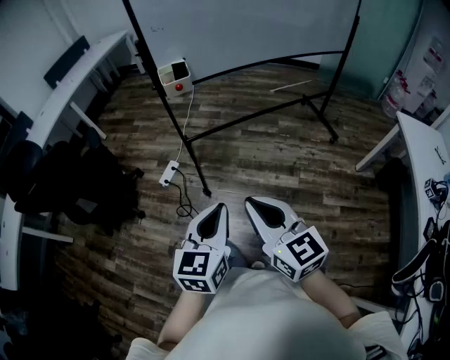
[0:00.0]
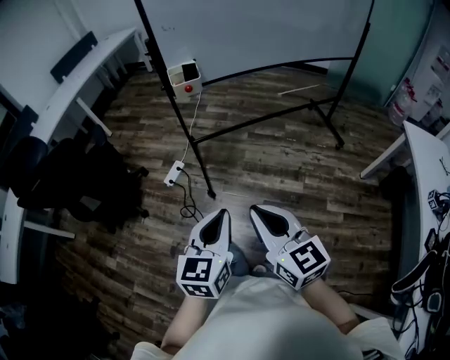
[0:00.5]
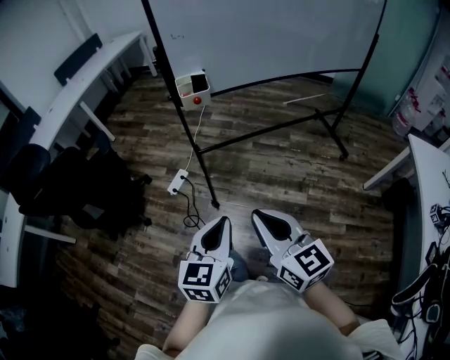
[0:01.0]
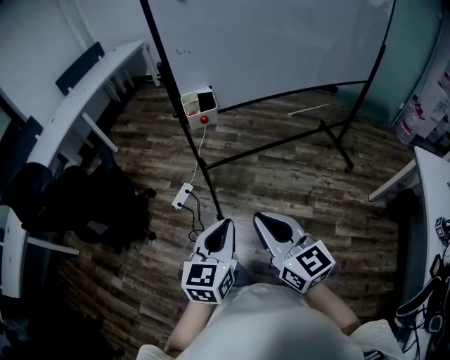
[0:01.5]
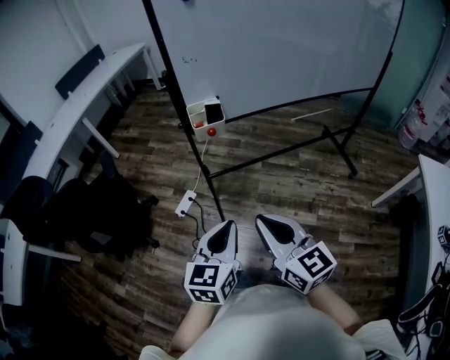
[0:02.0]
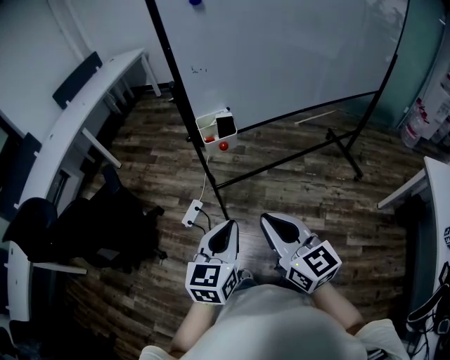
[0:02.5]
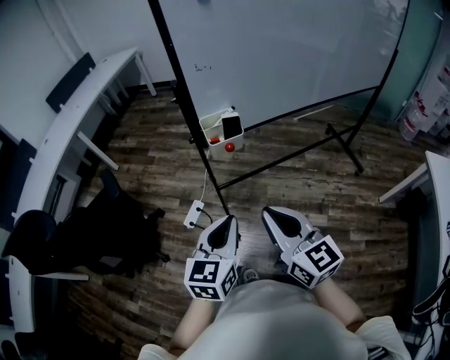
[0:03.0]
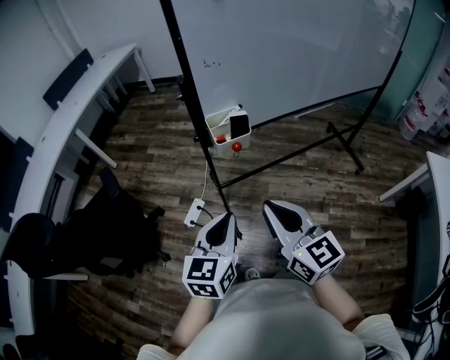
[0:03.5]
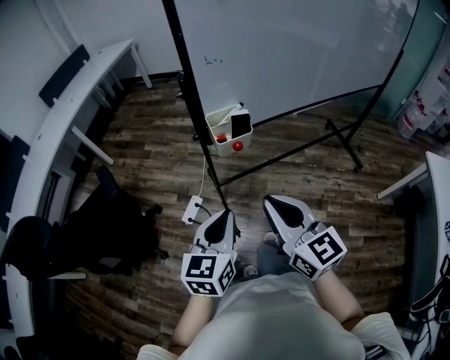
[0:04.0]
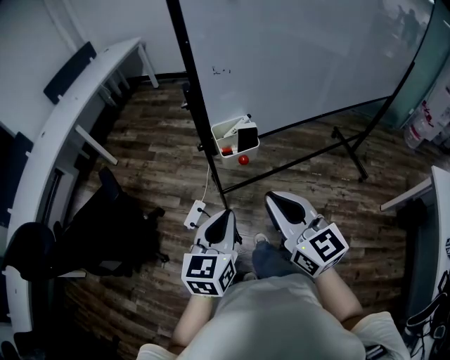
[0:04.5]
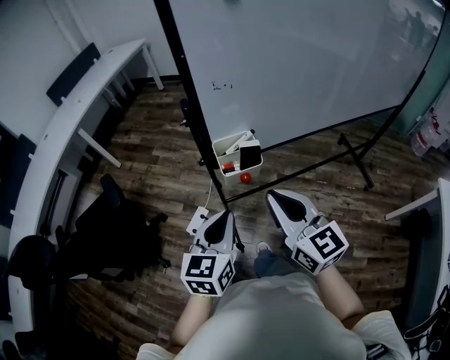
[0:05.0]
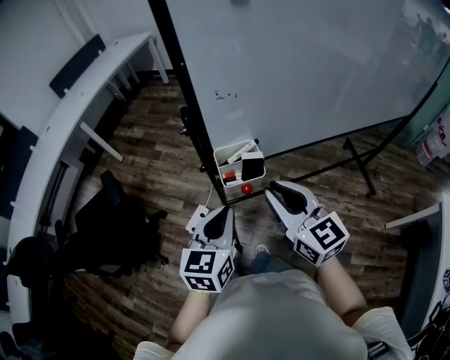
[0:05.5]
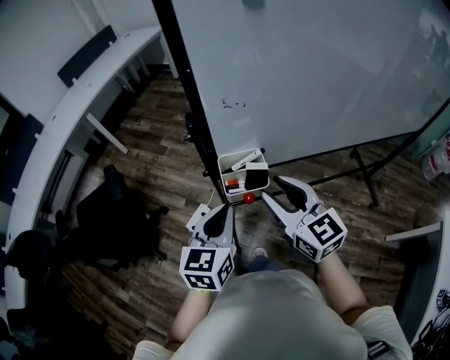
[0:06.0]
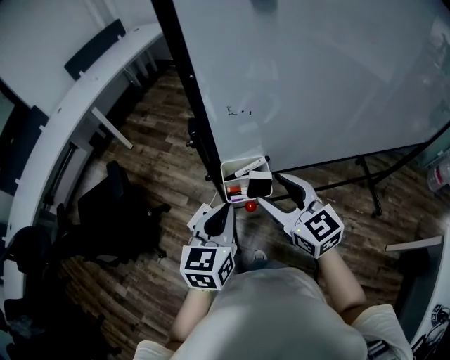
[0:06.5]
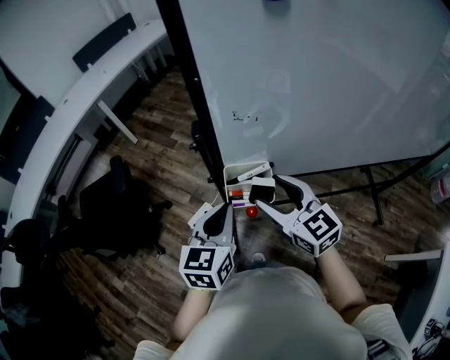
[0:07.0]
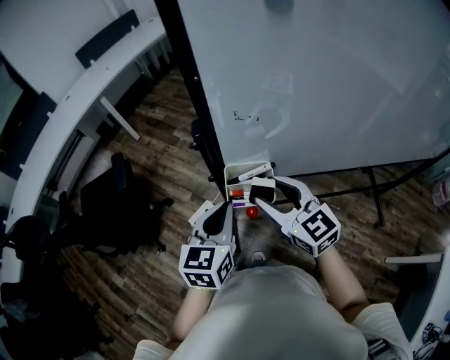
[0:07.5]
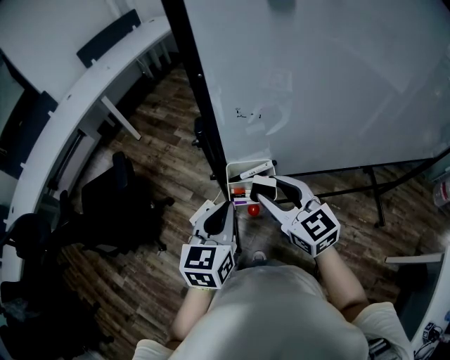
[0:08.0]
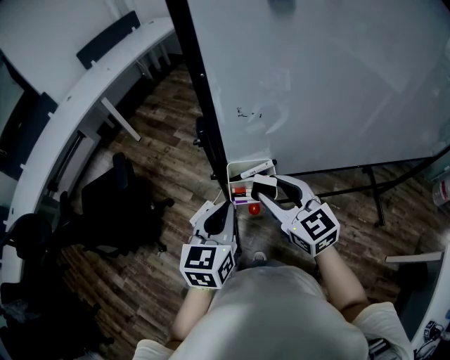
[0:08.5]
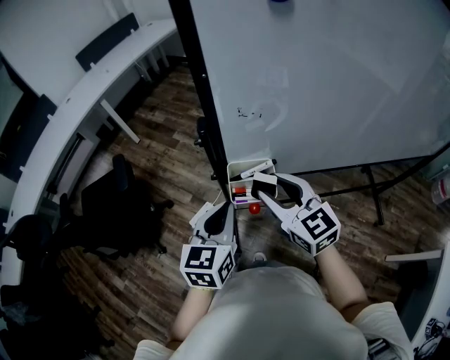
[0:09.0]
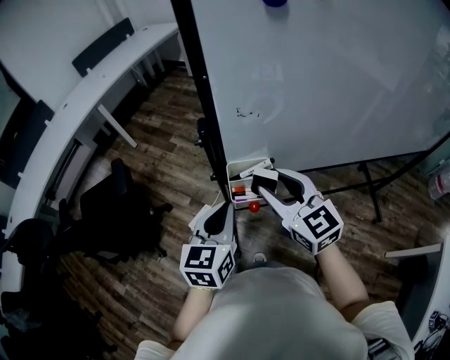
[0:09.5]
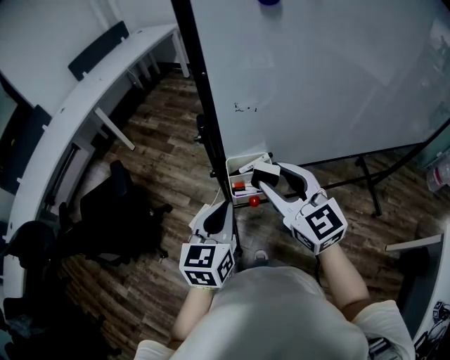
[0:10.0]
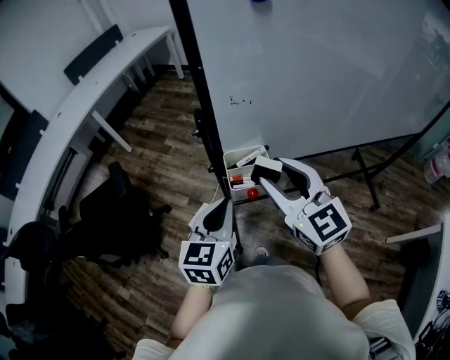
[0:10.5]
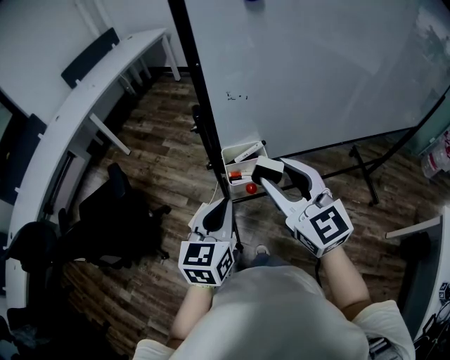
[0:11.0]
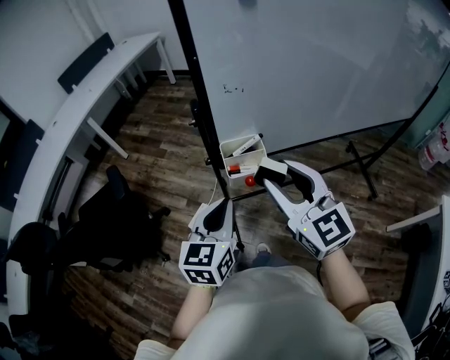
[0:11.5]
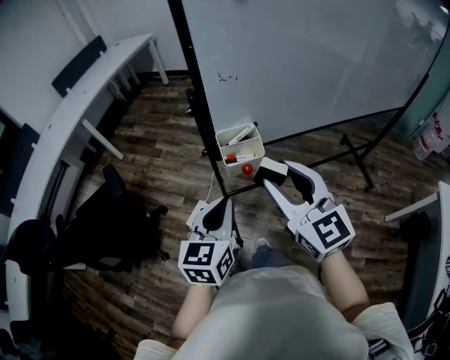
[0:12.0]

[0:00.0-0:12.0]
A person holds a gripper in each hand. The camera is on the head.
0:00.0 to 0:02.0: The two grippers go roughly 20 cm forward.
0:02.0 to 0:04.0: The two grippers go some 15 cm forward and to the left.
0:04.0 to 0:06.0: Both grippers move forward, some 20 cm. The right gripper opens.
0:06.0 to 0:08.0: The right gripper travels forward by about 5 cm.
0:08.0 to 0:10.0: The right gripper shifts some 5 cm upward.
0:10.0 to 0:12.0: The grippers both shift backward by approximately 10 cm.

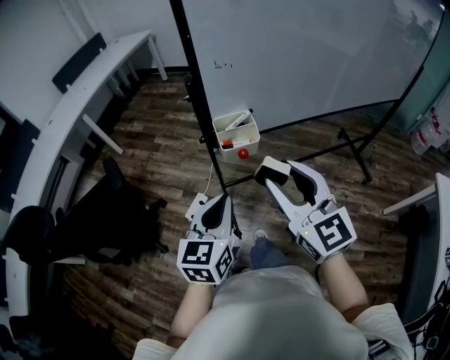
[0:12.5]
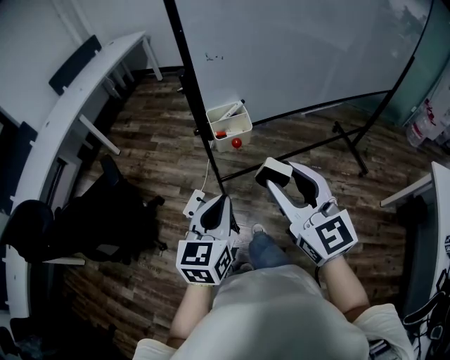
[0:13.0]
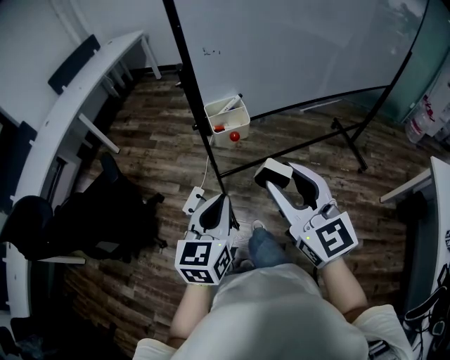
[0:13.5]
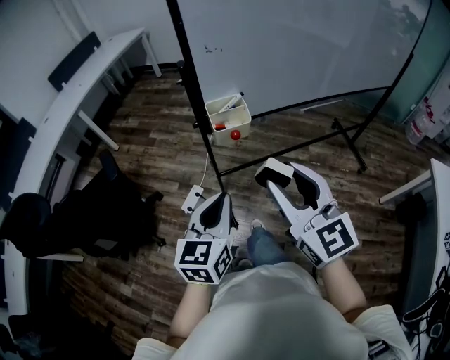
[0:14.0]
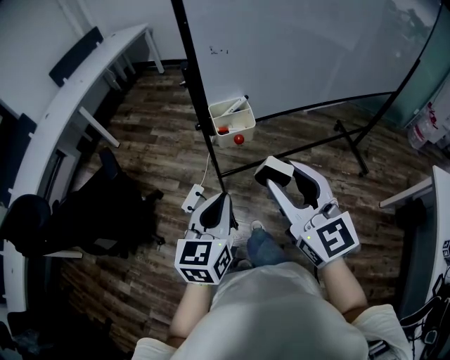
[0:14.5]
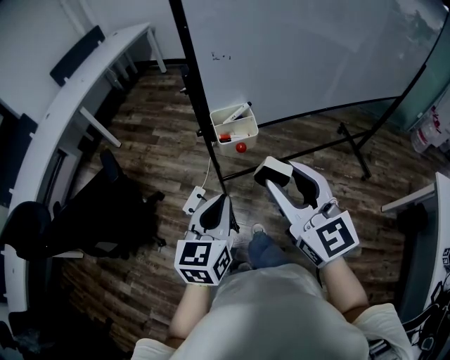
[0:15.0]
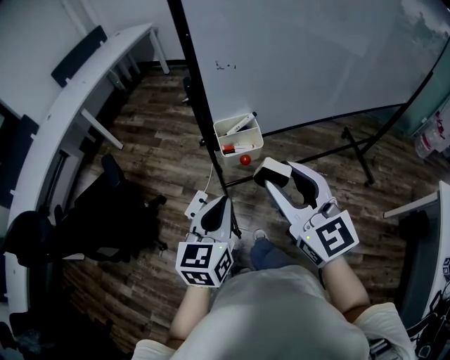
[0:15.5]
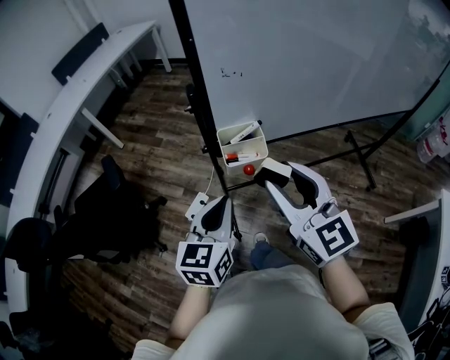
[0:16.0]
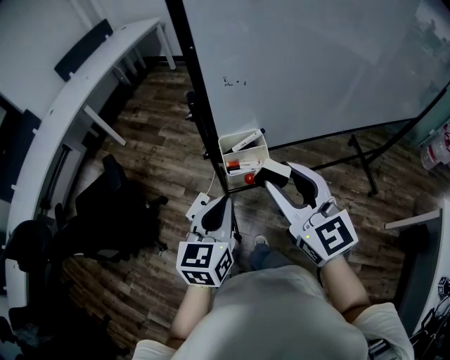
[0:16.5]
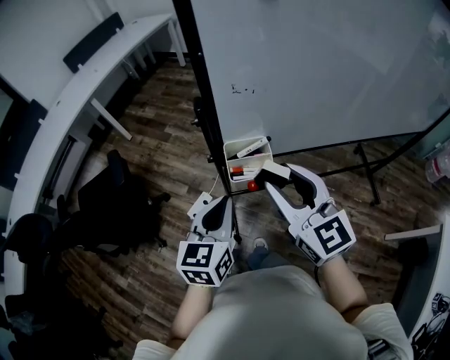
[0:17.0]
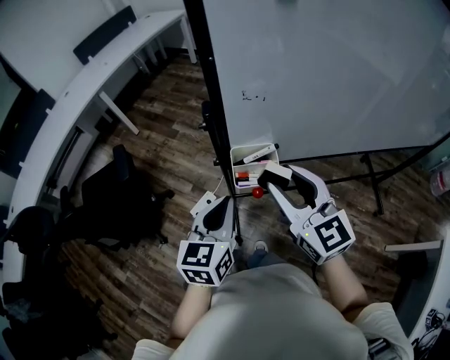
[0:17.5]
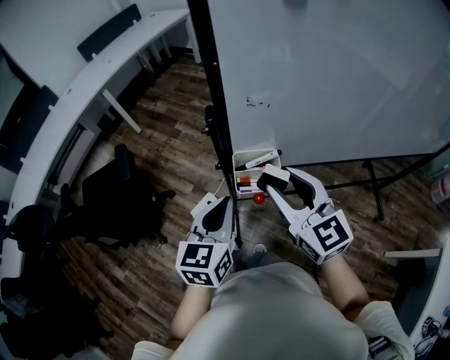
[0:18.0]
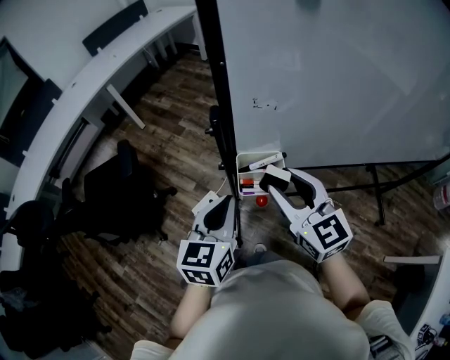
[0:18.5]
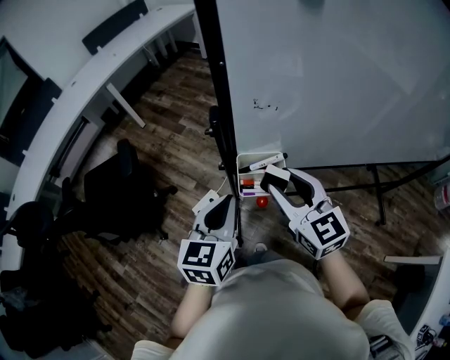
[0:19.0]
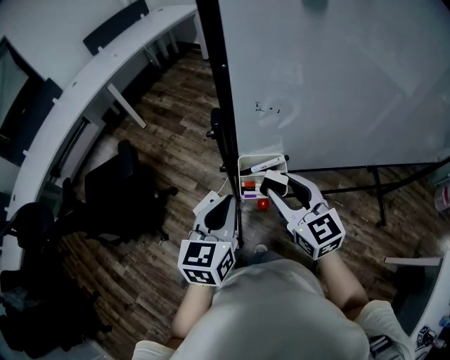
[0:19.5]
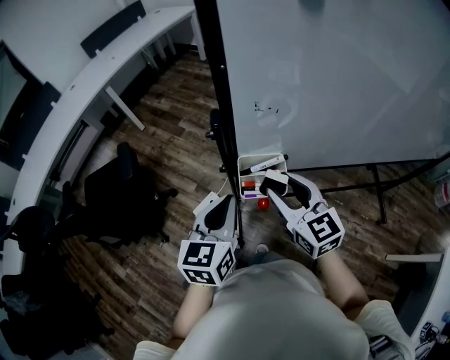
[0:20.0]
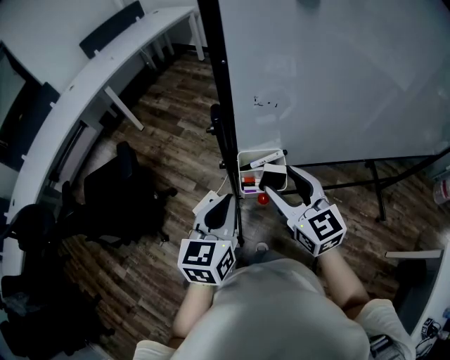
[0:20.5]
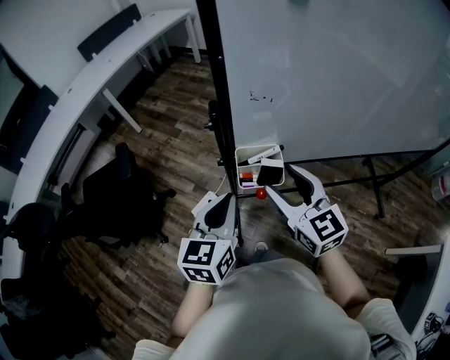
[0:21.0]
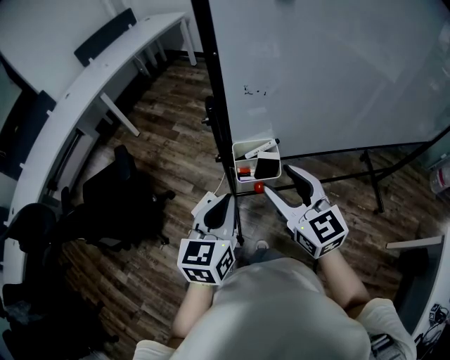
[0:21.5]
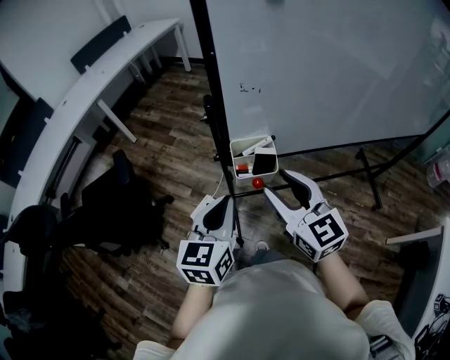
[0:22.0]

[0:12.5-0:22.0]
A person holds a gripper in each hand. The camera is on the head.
0:14.5 to 0:16.5: The grippers both shift forward by roughly 15 cm.
0:16.5 to 0:18.0: The right gripper is displaced forward by some 5 cm.
0:18.0 to 0:20.0: The right gripper shifts approximately 5 cm downward.
0:20.0 to 0:22.0: Both grippers travel together backward, some 5 cm.

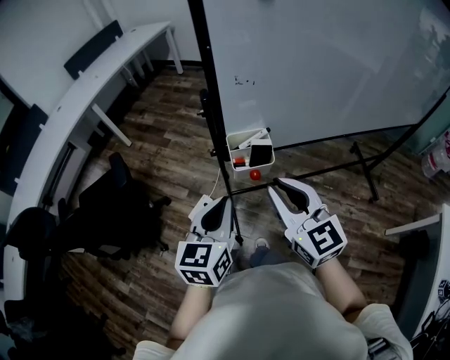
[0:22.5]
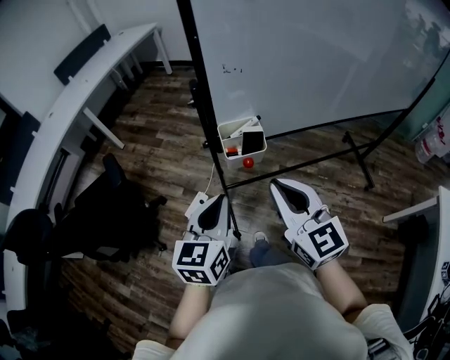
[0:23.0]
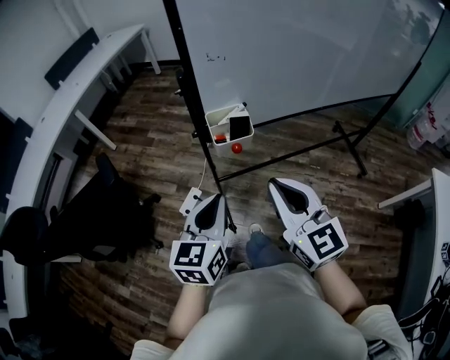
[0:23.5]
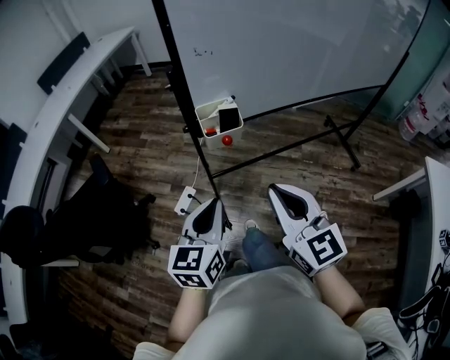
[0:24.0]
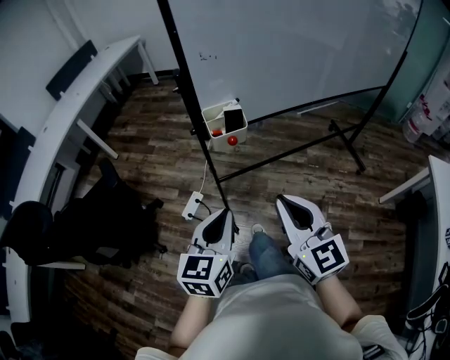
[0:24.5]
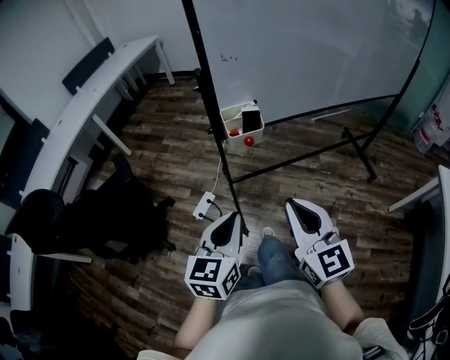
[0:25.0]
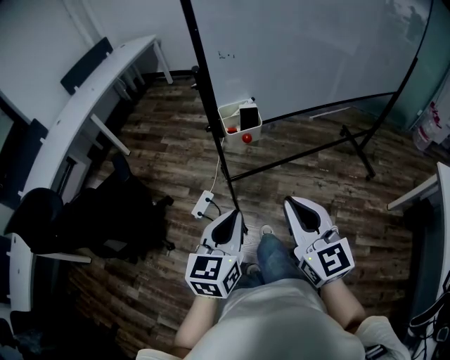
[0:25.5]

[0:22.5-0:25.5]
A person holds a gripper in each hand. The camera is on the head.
0:22.5 to 0:24.0: Both grippers move backward, approximately 10 cm.
0:24.0 to 0:25.5: Both grippers travel together backward, roughly 5 cm.

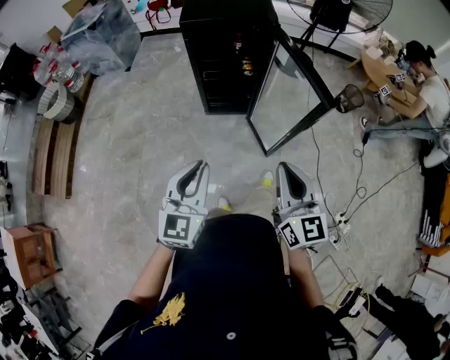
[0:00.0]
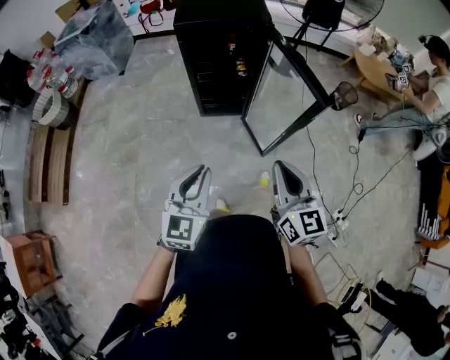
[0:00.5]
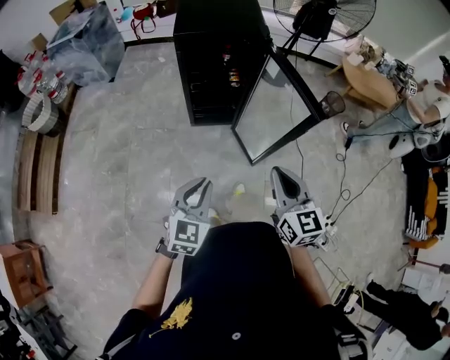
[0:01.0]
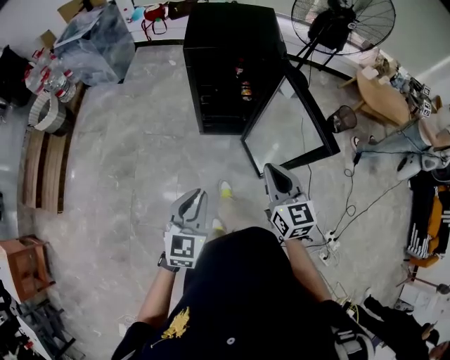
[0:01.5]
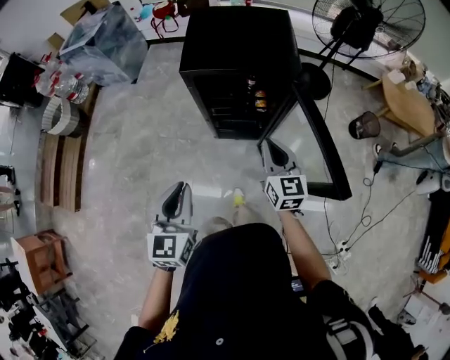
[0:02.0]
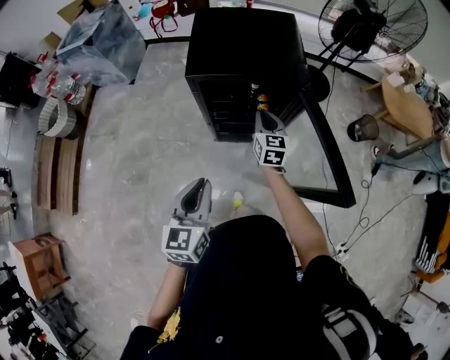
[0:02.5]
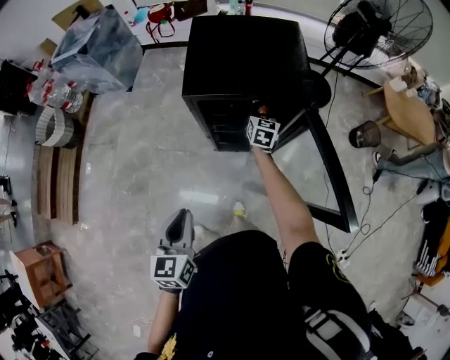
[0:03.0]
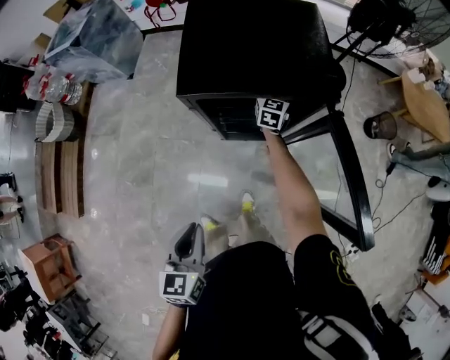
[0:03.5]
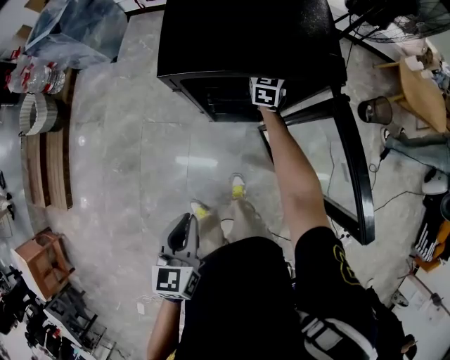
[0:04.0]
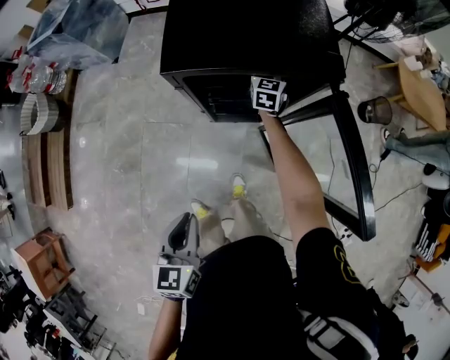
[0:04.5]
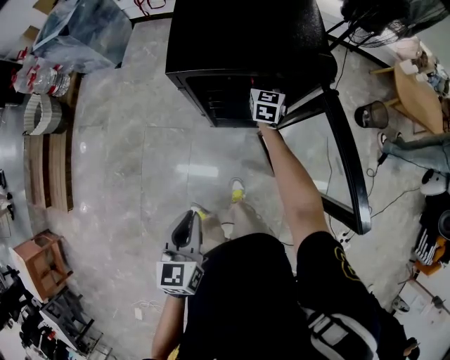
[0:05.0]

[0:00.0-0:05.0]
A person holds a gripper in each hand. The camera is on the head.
0:00.0 to 0:02.5: The left gripper travels forward by about 30 cm. Meanwhile the right gripper goes roughly 50 cm forward.
0:02.5 to 0:05.0: The left gripper moves downward, roughly 10 cm. The right gripper shifts some 20 cm forward and downward, and opens, then closes again.
